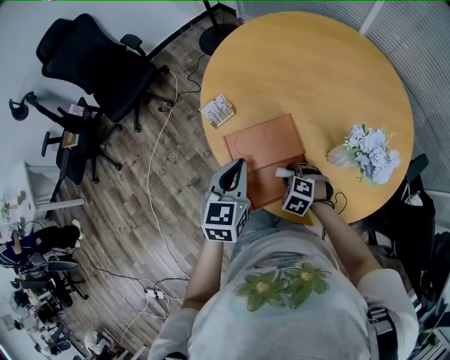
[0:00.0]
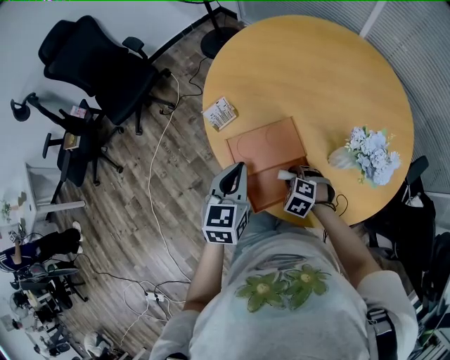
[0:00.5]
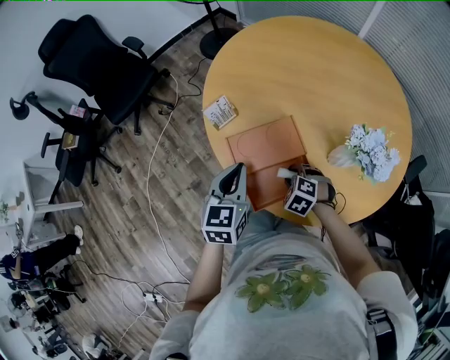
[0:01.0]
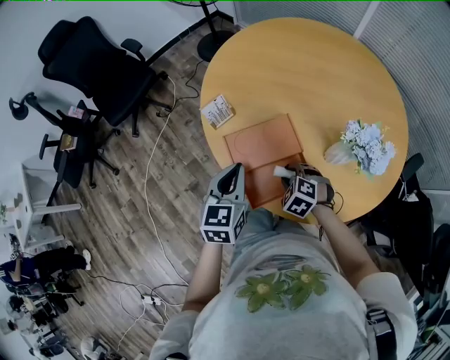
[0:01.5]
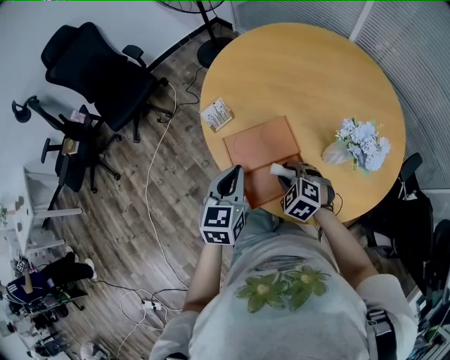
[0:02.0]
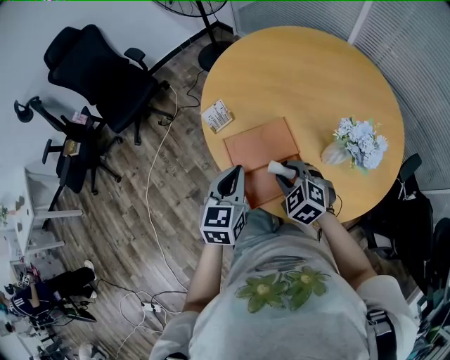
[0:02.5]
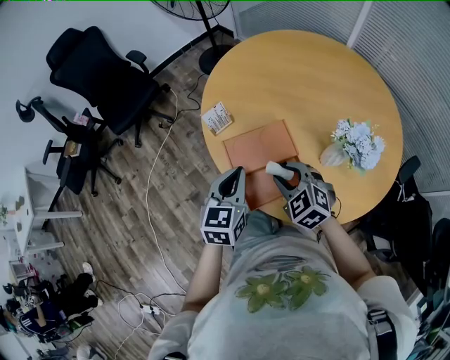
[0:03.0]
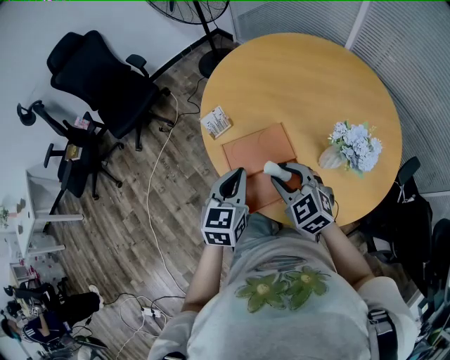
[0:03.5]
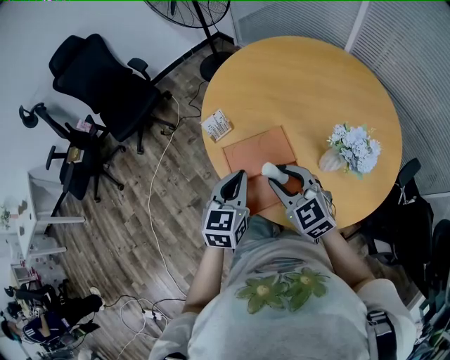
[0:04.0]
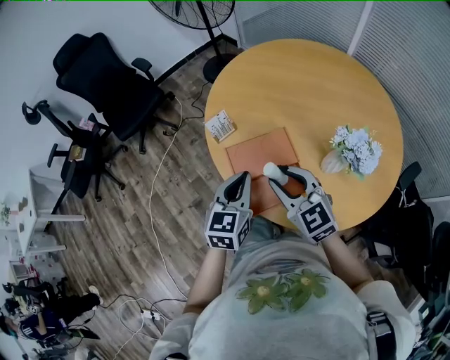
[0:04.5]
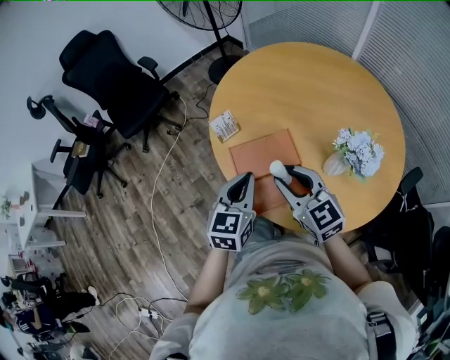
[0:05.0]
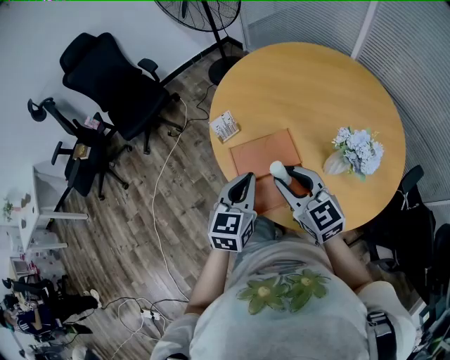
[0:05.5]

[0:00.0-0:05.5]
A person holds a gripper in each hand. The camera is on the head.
0:00.0 to 0:02.0: The right gripper shifts approximately 10 cm upward.
0:02.0 to 0:03.5: The right gripper travels upward by approximately 10 cm, and changes its angle by about 20 degrees.
0:03.5 to 0:05.5: The right gripper is displaced upward by about 5 cm, and rotates about 20 degrees.

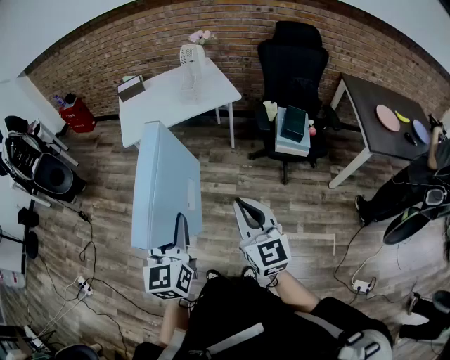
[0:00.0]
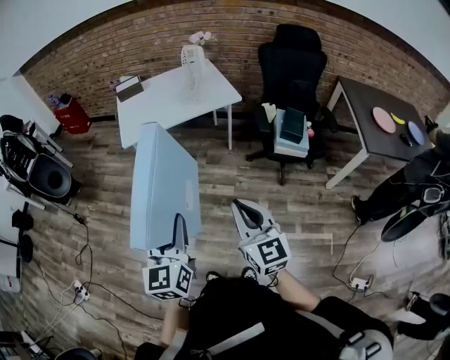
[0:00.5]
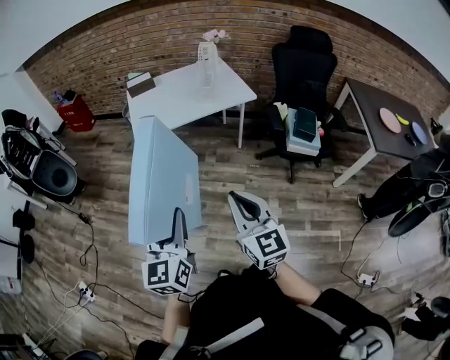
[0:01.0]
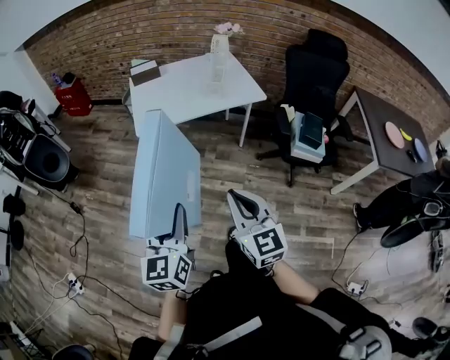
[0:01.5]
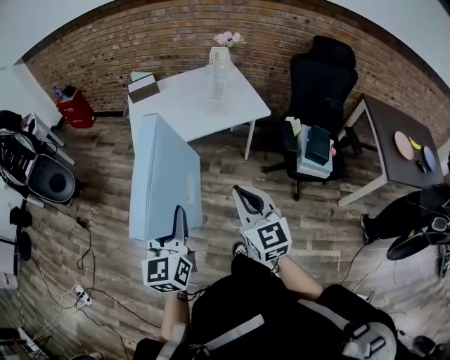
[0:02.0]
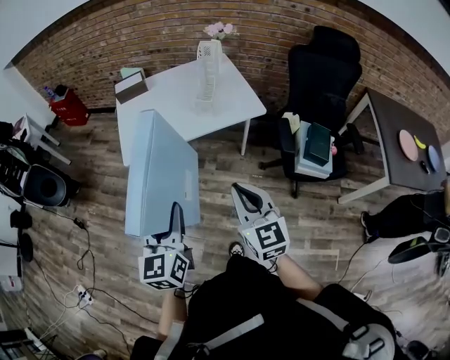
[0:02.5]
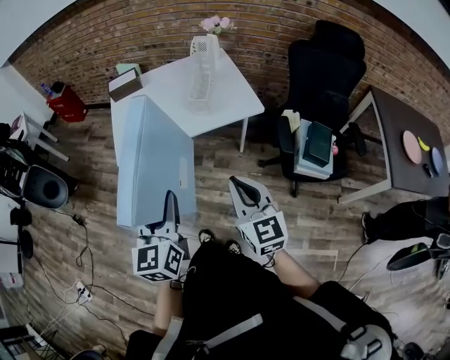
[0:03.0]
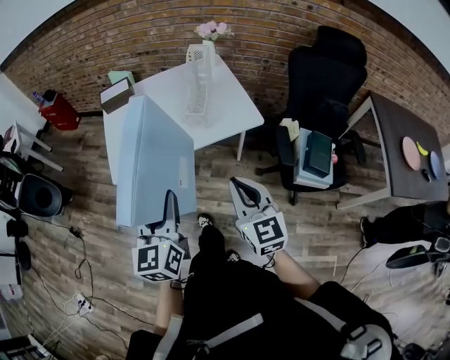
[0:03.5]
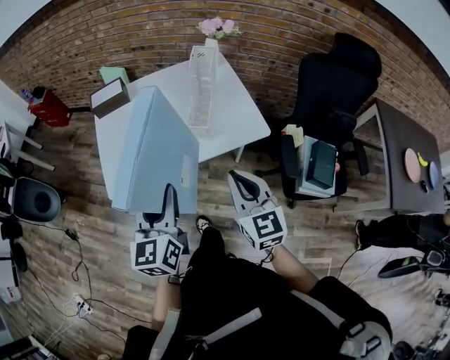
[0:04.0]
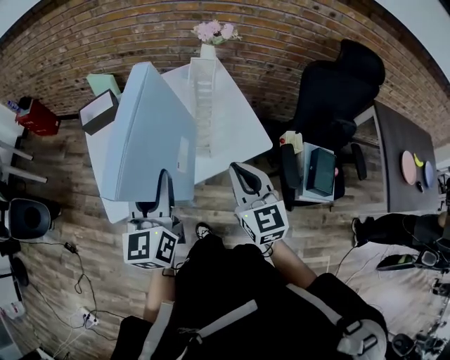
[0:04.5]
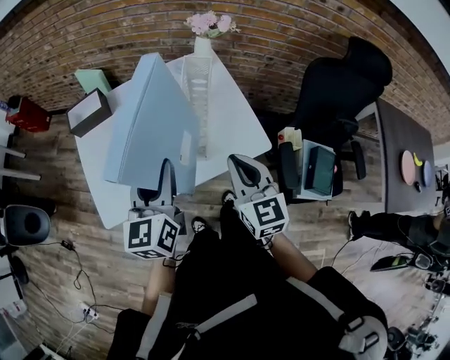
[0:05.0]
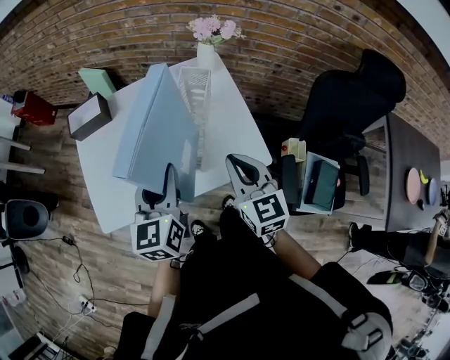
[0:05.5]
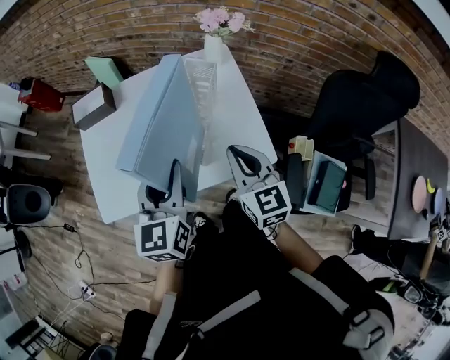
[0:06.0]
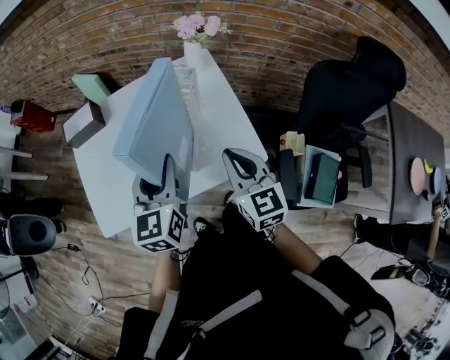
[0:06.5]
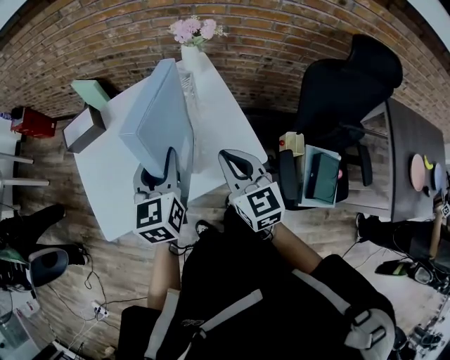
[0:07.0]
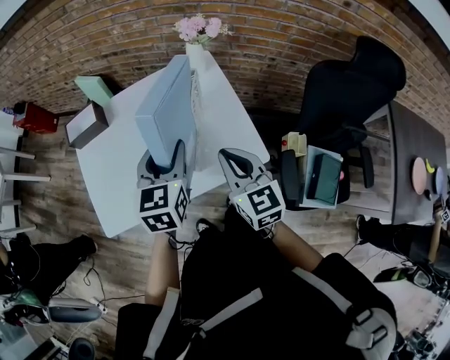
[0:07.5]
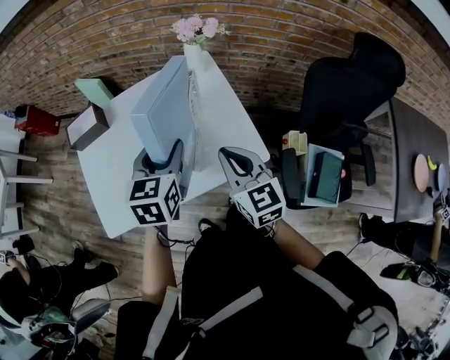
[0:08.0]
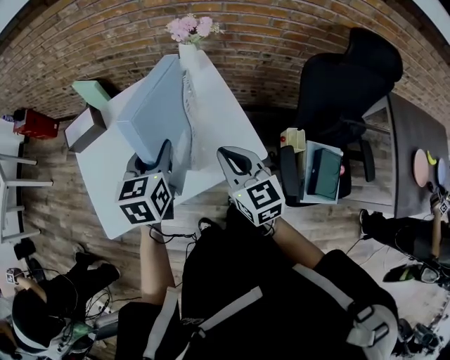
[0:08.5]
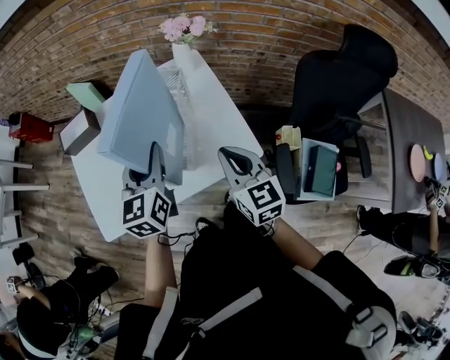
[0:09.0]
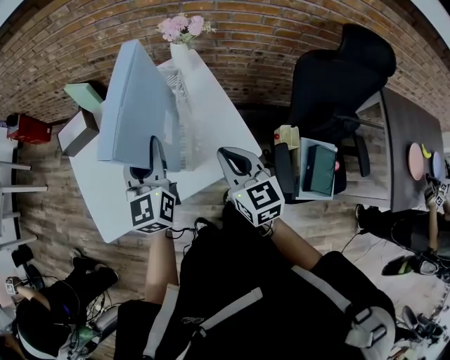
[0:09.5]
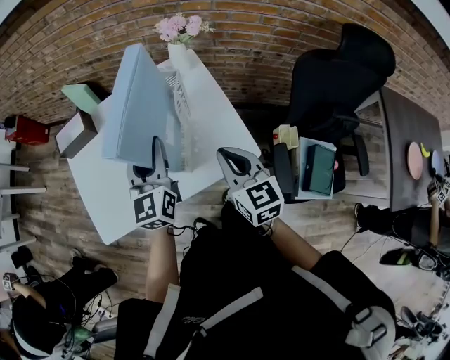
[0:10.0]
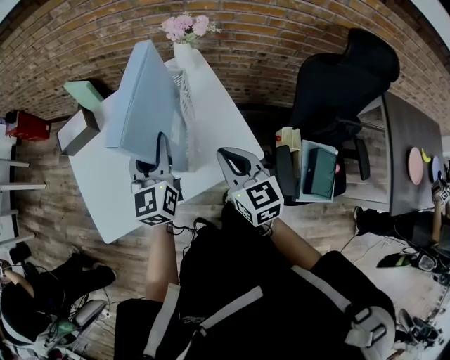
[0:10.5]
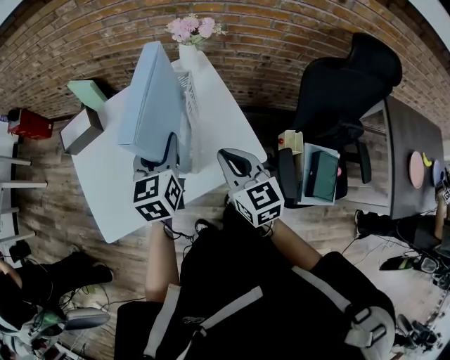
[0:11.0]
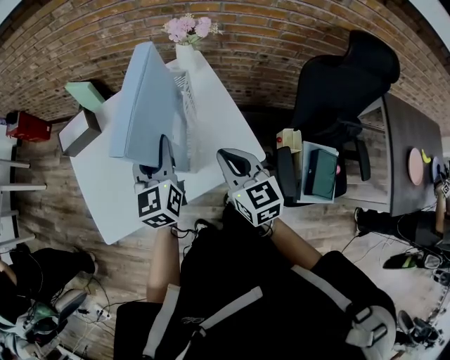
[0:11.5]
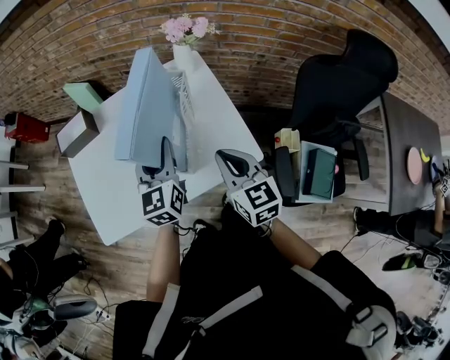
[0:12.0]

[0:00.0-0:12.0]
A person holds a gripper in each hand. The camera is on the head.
0:00.0 to 0:02.0: Both grippers move forward and to the left, about 25 cm.
0:02.0 to 0:04.0: The two grippers go about 35 cm forward.
0:04.0 to 0:06.0: The grippers both shift forward by roughly 25 cm.
0:06.0 to 0:08.0: The left gripper is displaced forward by about 5 cm, and changes its angle by roughly 20 degrees.
0:08.0 to 0:10.0: The left gripper swivels approximately 30 degrees.

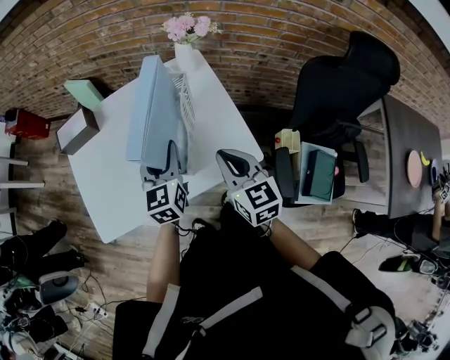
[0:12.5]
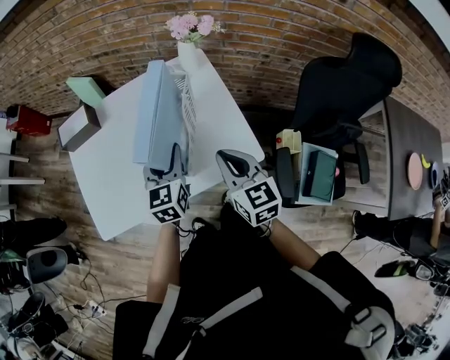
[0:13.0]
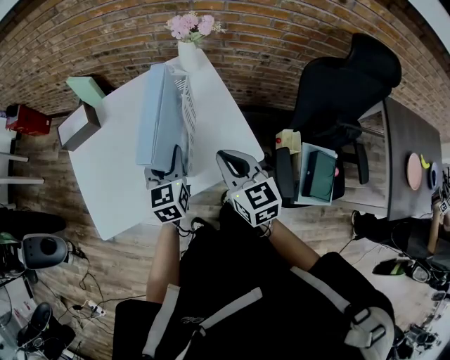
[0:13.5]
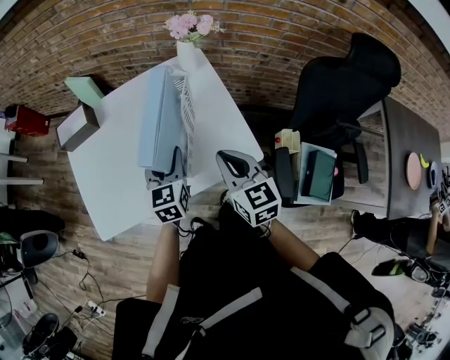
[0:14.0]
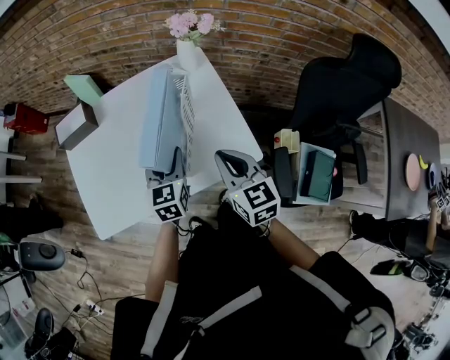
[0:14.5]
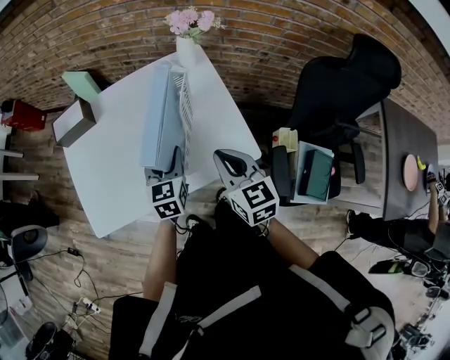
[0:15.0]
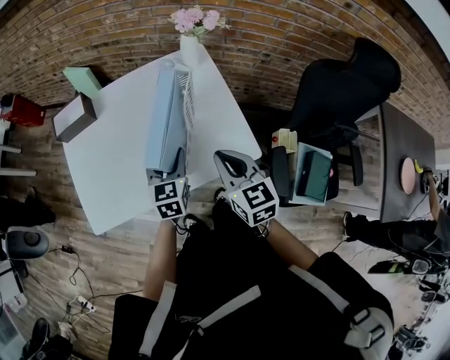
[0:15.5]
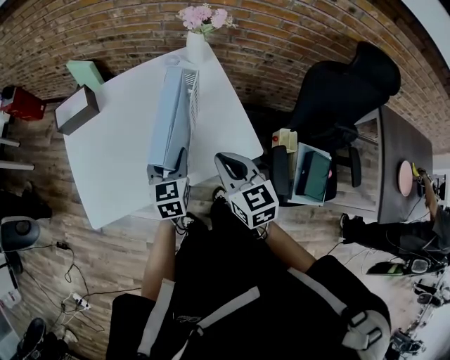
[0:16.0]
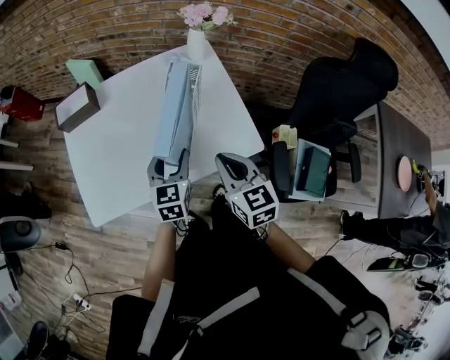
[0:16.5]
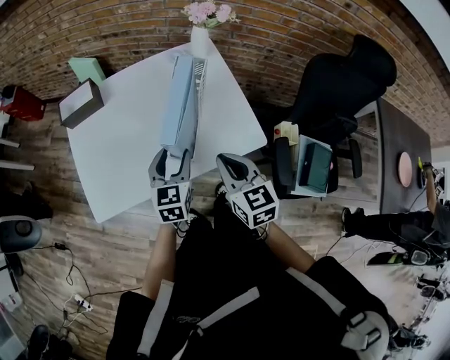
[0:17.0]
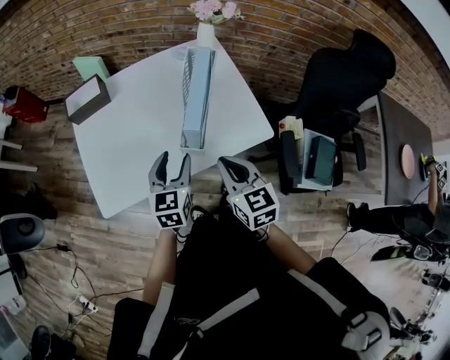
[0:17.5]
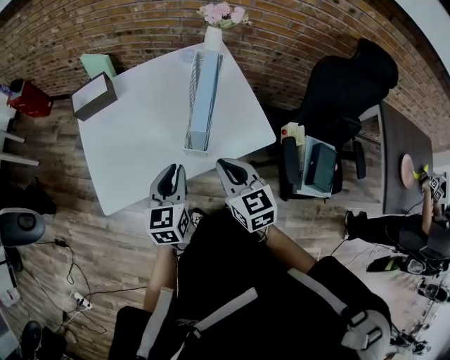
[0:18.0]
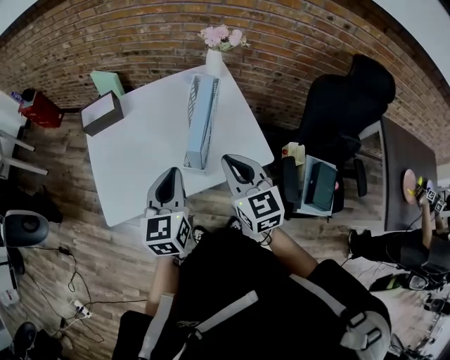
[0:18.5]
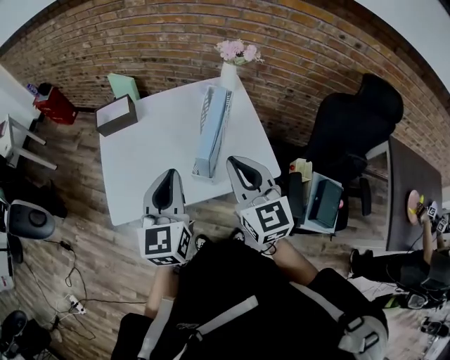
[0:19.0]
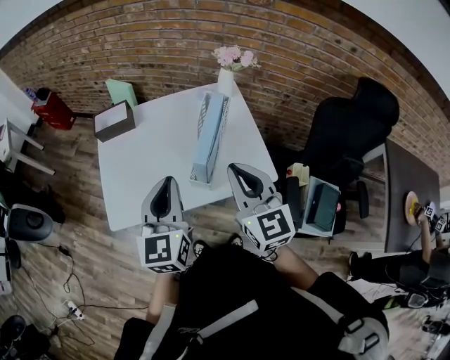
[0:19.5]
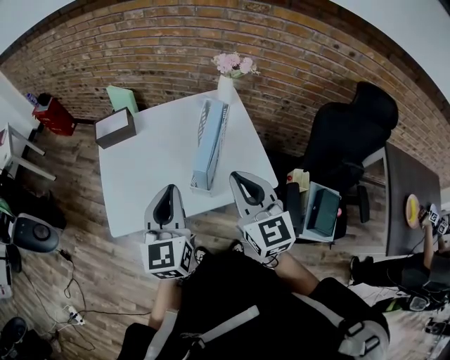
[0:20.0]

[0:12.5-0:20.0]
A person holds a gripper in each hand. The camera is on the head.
0:12.5 to 0:14.5: The left gripper goes approximately 5 cm downward.
0:14.5 to 0:16.5: The left gripper moves approximately 5 cm, while the right gripper shifts by about 5 cm.
0:16.5 to 0:18.0: The left gripper moves backward and to the left, roughly 10 cm, and closes. Meanwhile the right gripper shifts approximately 10 cm to the left and backward.
0:18.0 to 0:20.0: The grippers both shift upward by approximately 15 cm. The left gripper changes its angle by roughly 20 degrees.

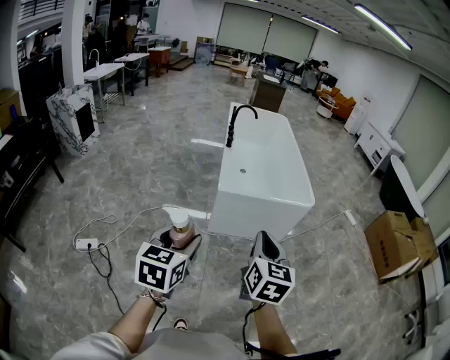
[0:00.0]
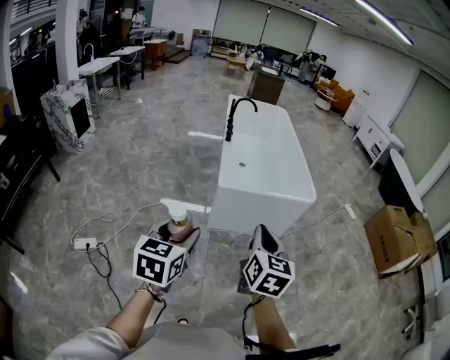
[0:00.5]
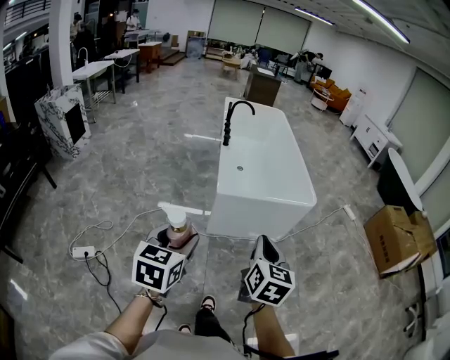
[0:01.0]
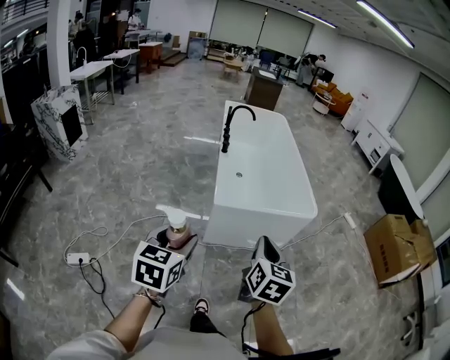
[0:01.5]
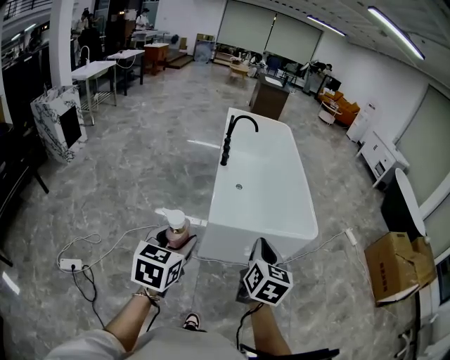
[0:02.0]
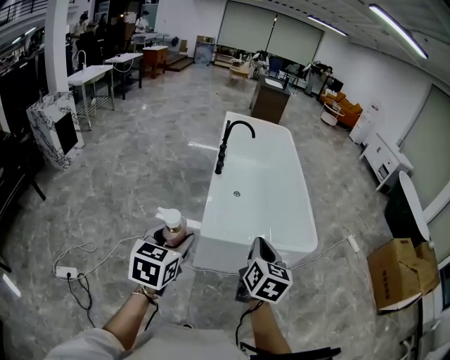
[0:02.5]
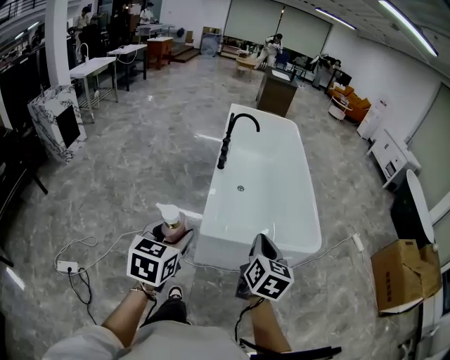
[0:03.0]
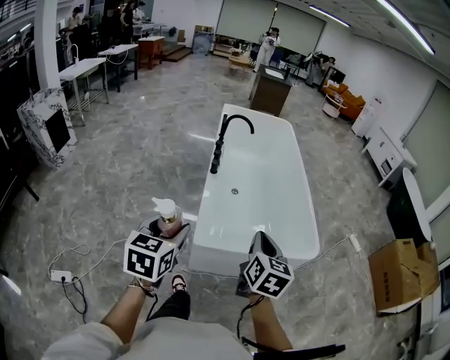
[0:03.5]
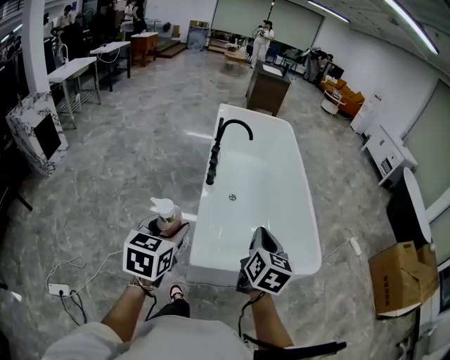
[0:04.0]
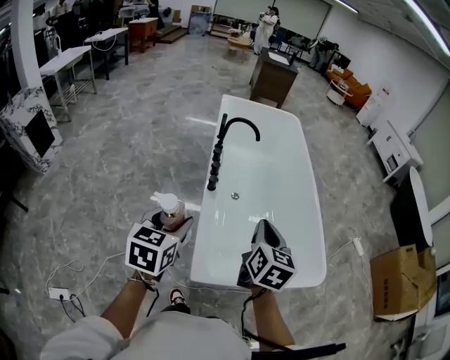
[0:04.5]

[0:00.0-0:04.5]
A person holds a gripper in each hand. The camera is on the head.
0:00.0 to 0:02.0: Both grippers move forward, some 25 cm.
0:02.0 to 0:04.5: The two grippers go some 40 cm forward.
